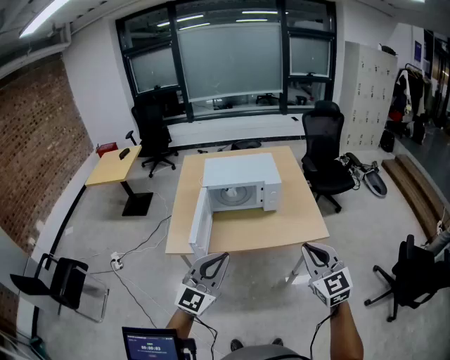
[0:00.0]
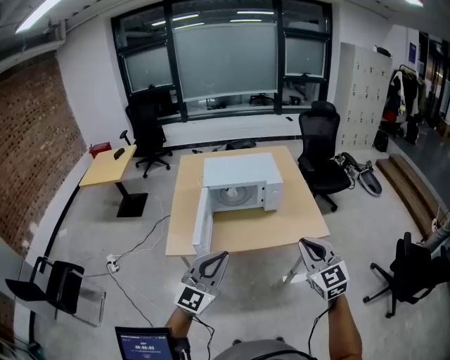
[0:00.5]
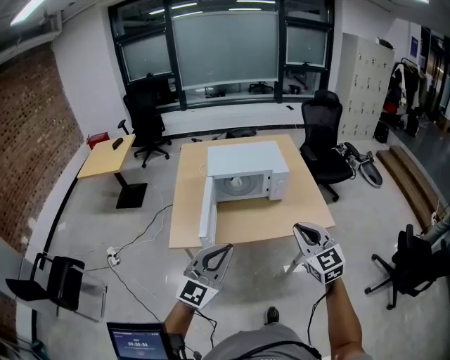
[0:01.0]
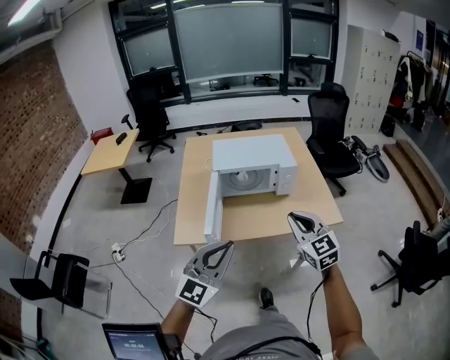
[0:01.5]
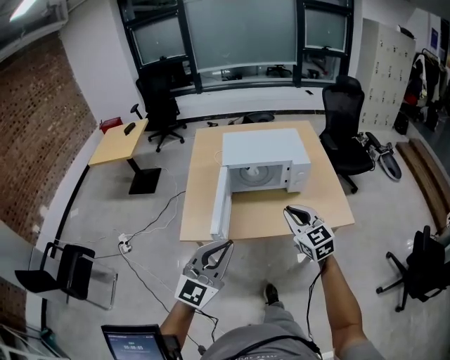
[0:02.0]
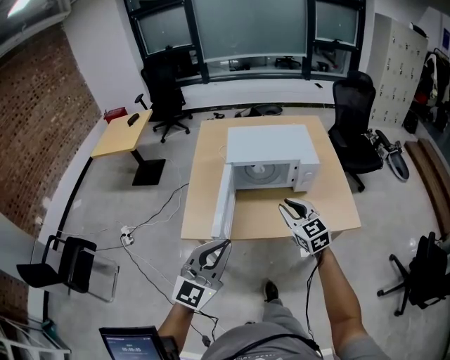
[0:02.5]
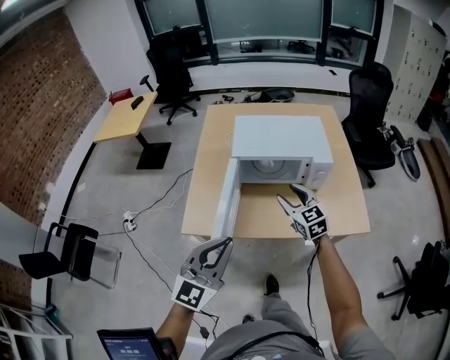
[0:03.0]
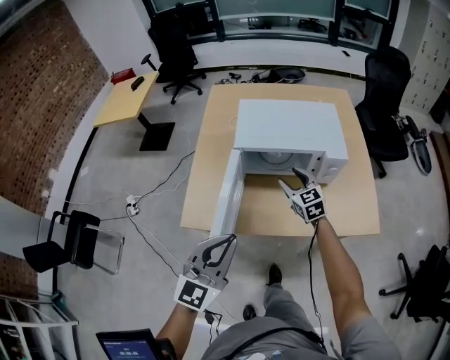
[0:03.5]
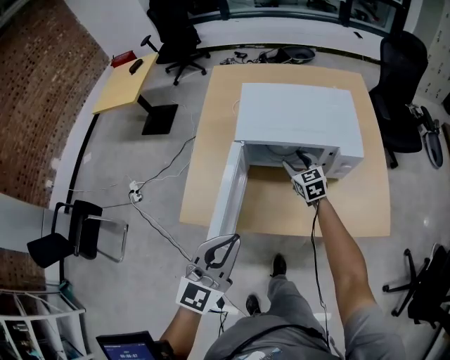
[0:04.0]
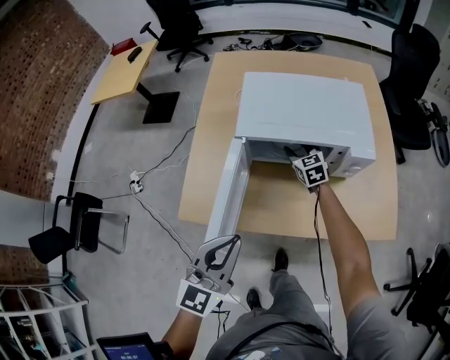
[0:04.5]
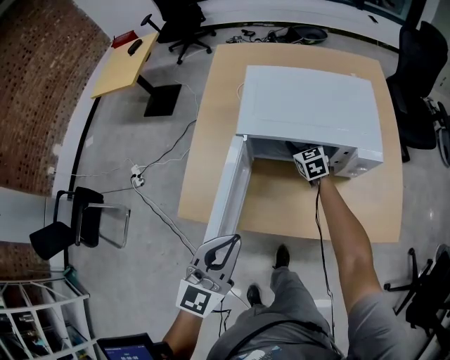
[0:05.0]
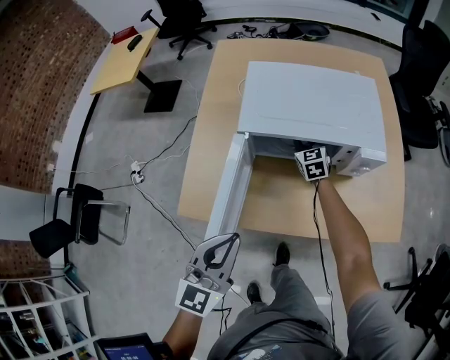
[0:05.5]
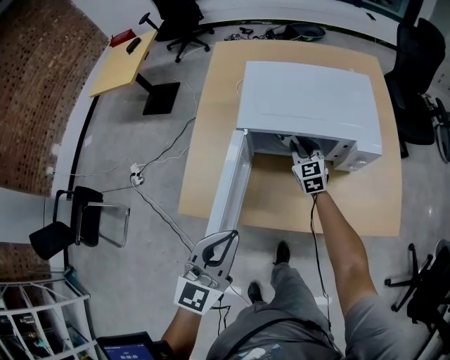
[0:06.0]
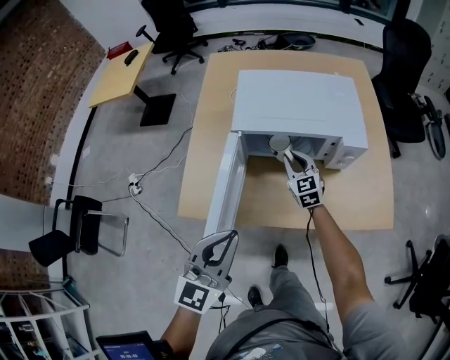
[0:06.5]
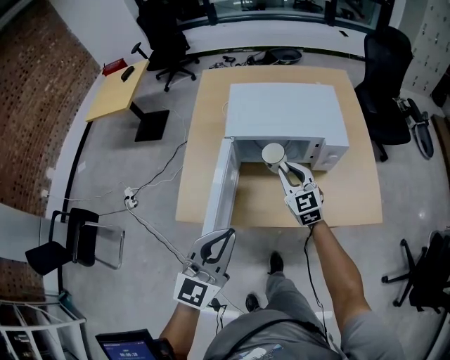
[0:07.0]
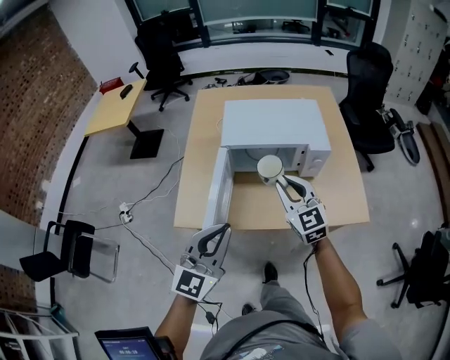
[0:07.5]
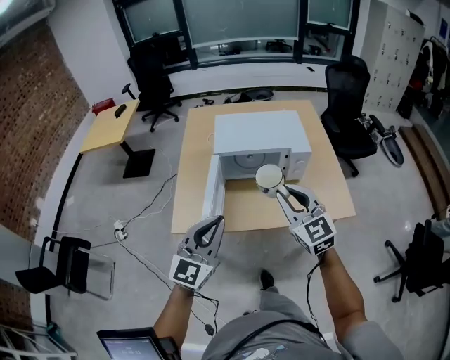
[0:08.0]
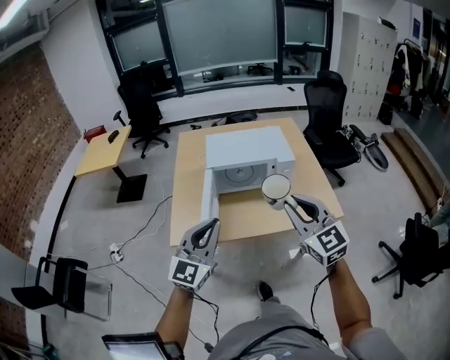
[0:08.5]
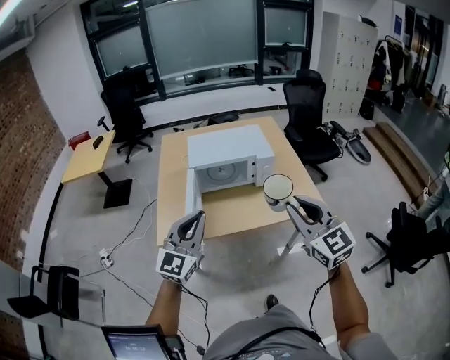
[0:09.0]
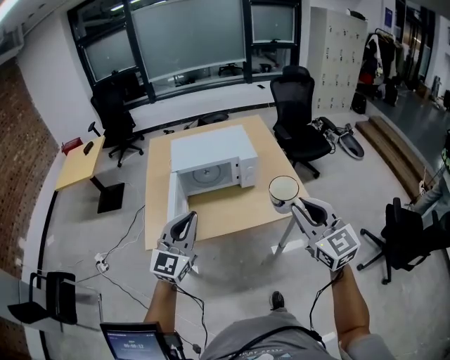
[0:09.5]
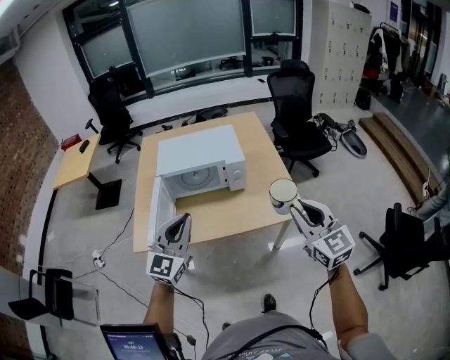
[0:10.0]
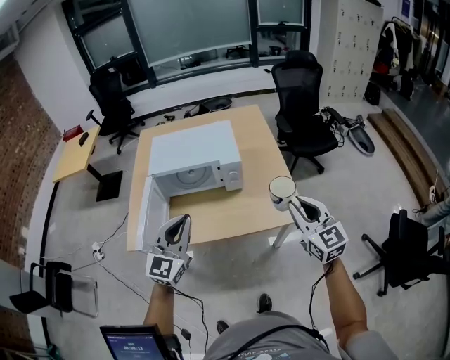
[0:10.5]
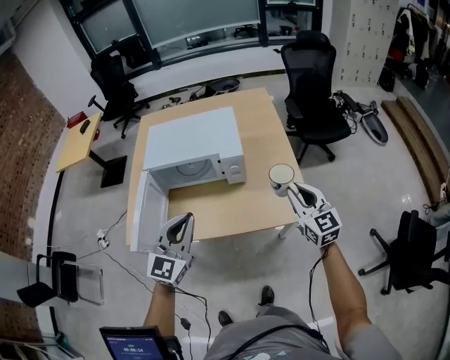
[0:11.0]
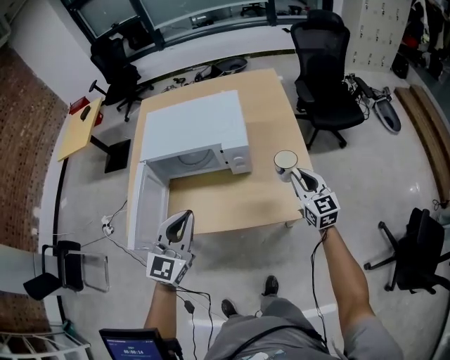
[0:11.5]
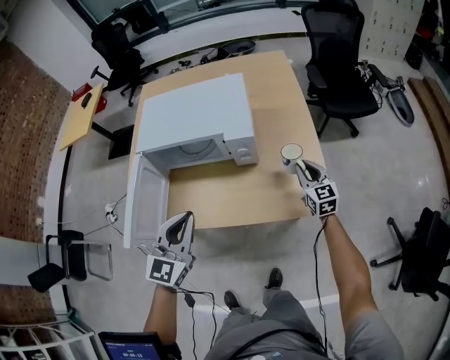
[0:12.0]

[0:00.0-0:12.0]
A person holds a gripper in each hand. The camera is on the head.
0:00.0 to 0:02.0: The right gripper moves to the left, forward and downward, some 25 cm, while the left gripper goes roughly 15 cm to the left and forward.
0:02.0 to 0:04.0: The right gripper is displaced forward and downward by some 50 cm, and opens up; the left gripper moves forward and downward, some 25 cm, and swivels roughly 20 degrees.
0:04.0 to 0:06.0: The left gripper moves some 5 cm, while the right gripper heads forward and downward, covering some 5 cm, and closes its fingers.
0:06.0 to 0:08.0: The right gripper shifts about 50 cm backward and upward. Meanwhile the left gripper moves backward and upward, about 20 cm.
0:08.0 to 0:10.0: The right gripper goes approximately 30 cm to the right, while the left gripper shifts about 15 cm to the right.
0:10.0 to 0:12.0: The right gripper is displaced forward and downward by roughly 50 cm. The left gripper shifts roughly 25 cm forward, downward and to the right.

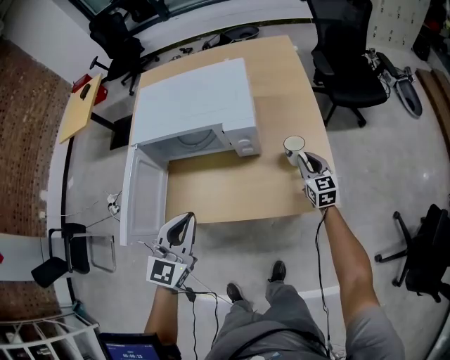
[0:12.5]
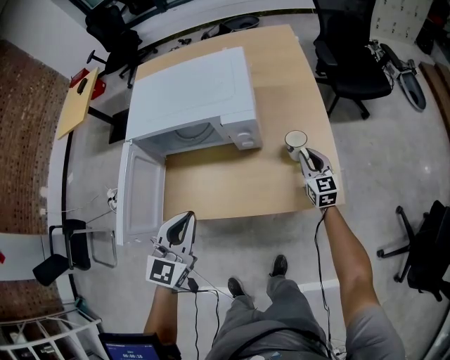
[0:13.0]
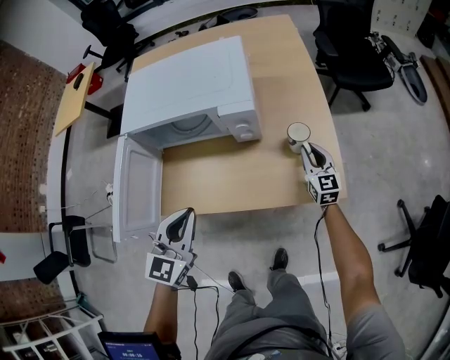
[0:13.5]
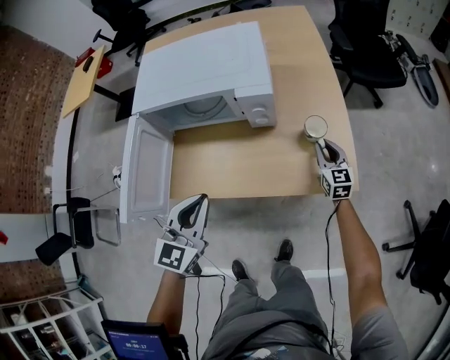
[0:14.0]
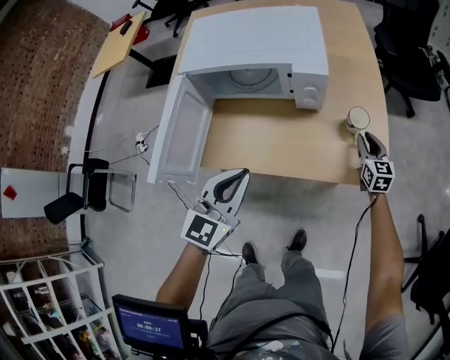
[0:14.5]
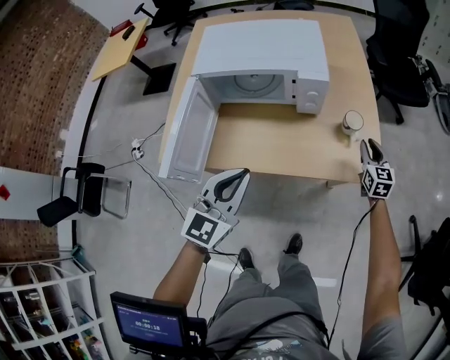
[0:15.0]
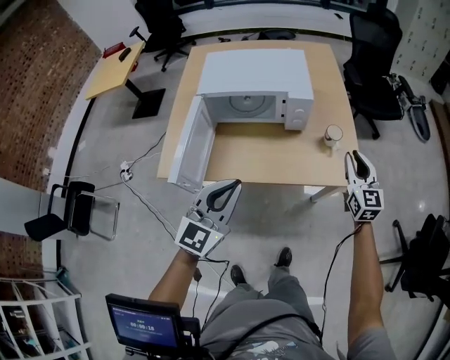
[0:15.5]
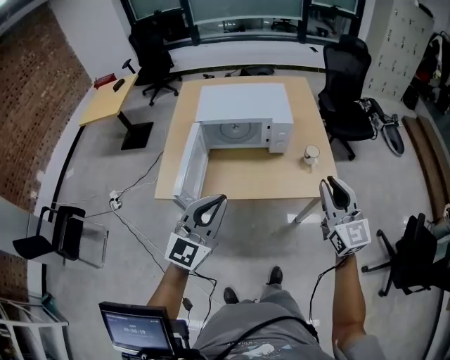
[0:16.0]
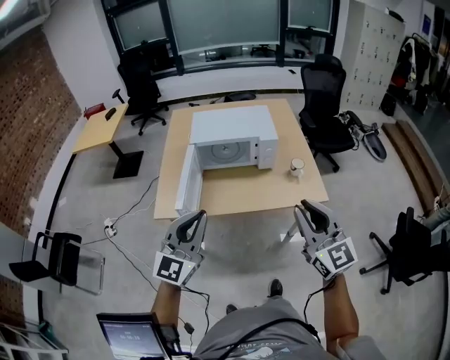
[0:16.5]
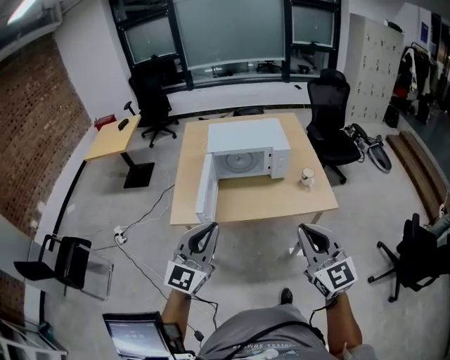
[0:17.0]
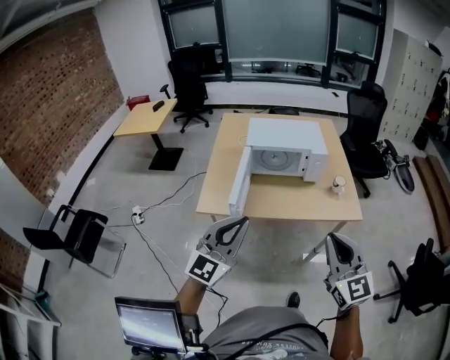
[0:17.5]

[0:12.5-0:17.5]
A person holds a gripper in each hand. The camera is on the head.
0:12.5 to 0:15.0: Both grippers move backward, some 10 cm.
0:15.0 to 0:17.5: The left gripper shifts approximately 40 cm backward, upward and to the left, and changes its angle by approximately 20 degrees. The right gripper shifts approximately 70 cm backward, upward and to the left, and changes its angle by approximately 30 degrees.

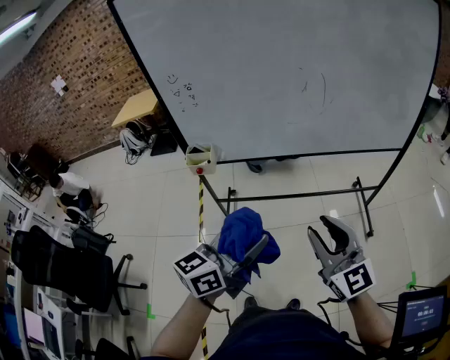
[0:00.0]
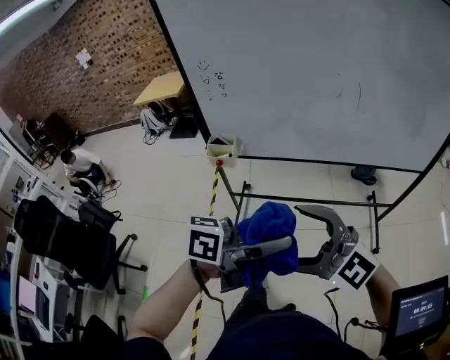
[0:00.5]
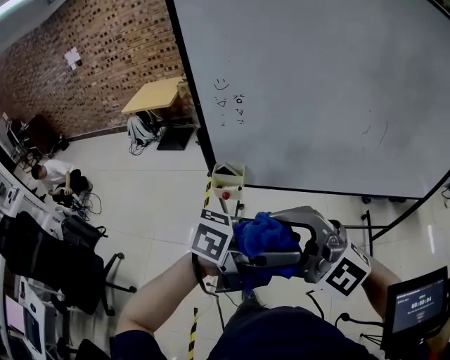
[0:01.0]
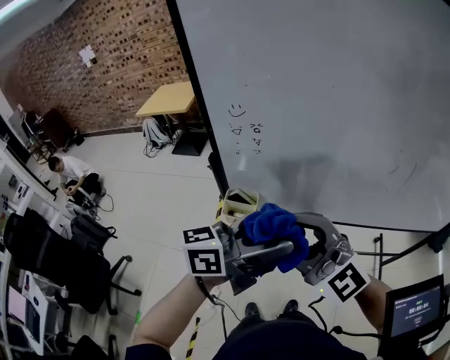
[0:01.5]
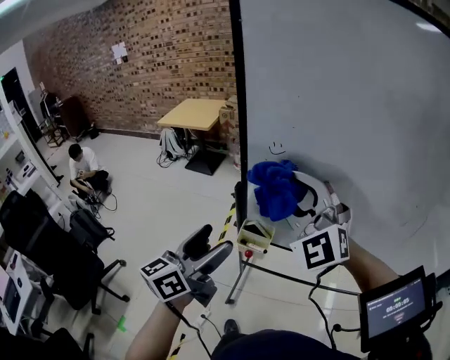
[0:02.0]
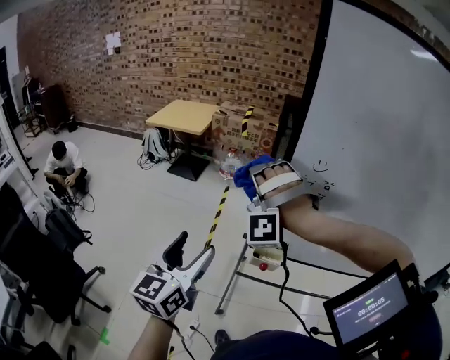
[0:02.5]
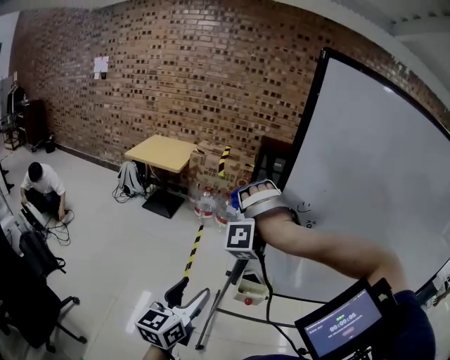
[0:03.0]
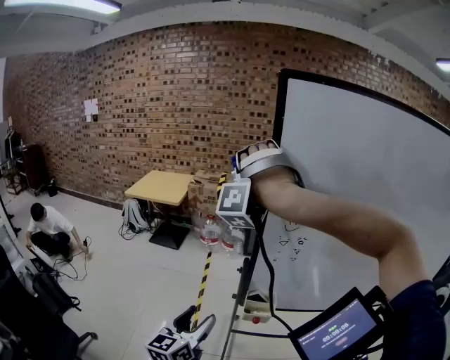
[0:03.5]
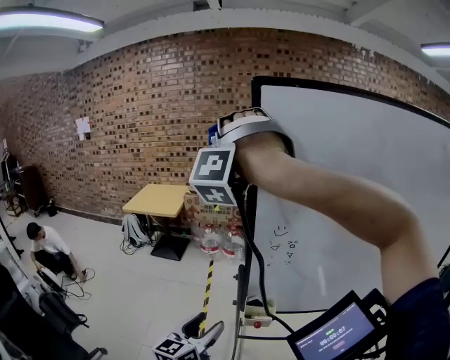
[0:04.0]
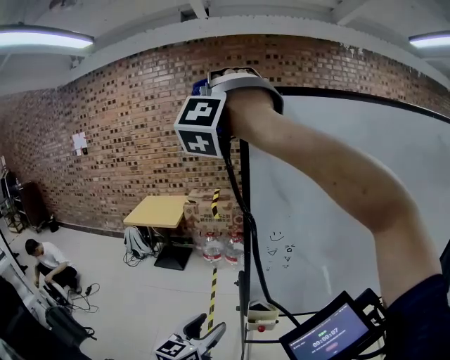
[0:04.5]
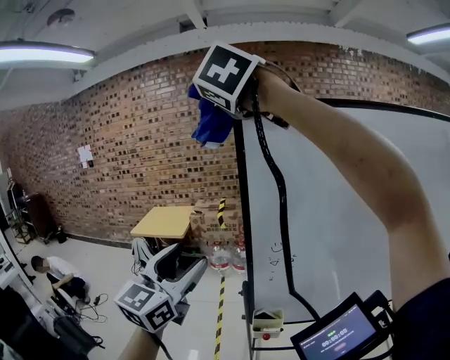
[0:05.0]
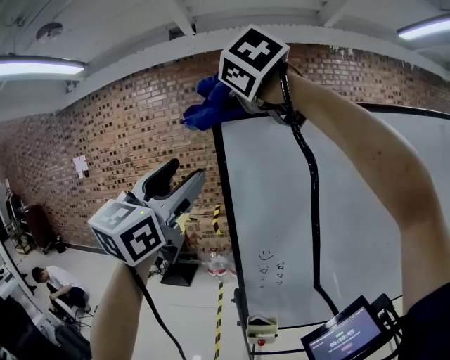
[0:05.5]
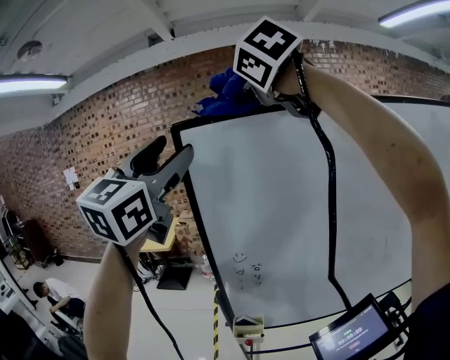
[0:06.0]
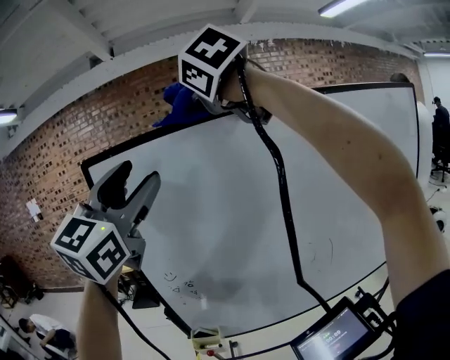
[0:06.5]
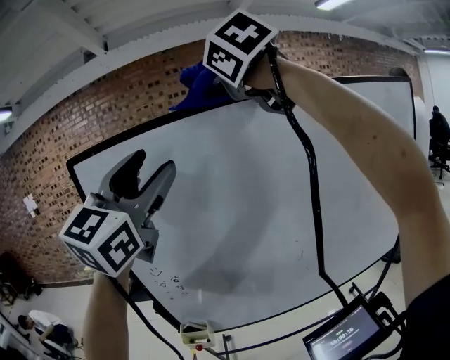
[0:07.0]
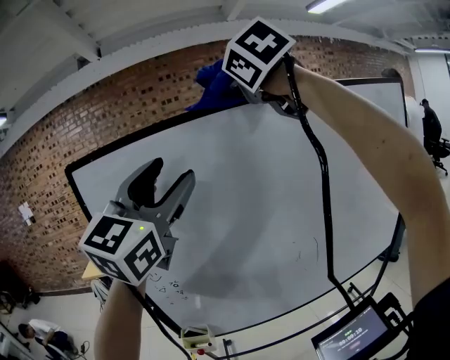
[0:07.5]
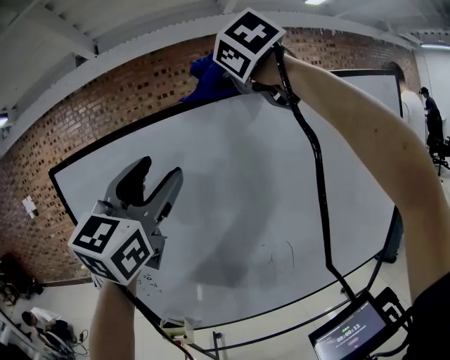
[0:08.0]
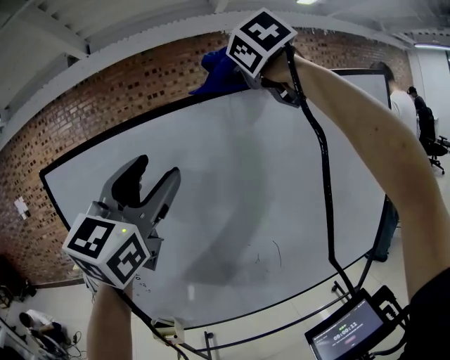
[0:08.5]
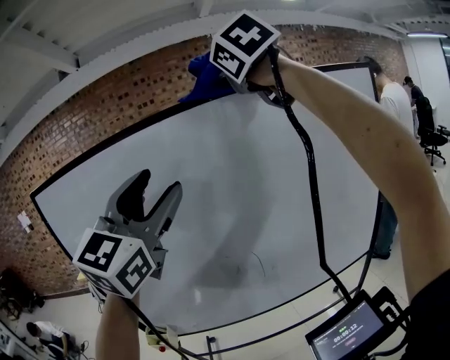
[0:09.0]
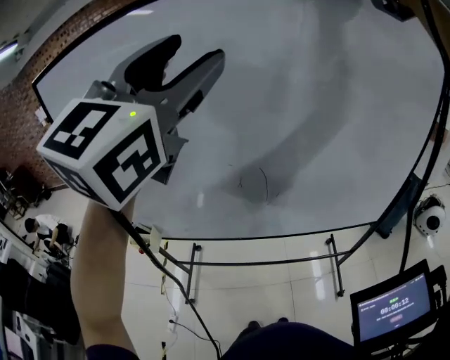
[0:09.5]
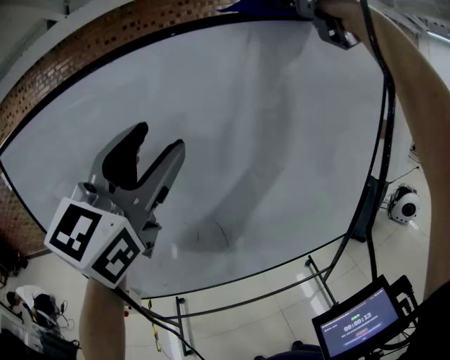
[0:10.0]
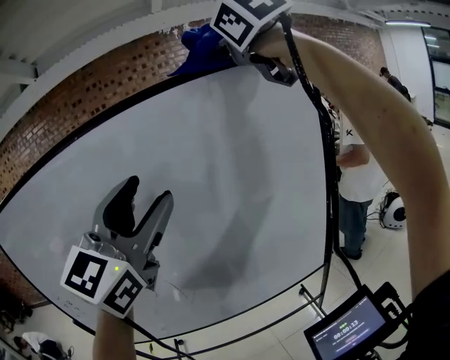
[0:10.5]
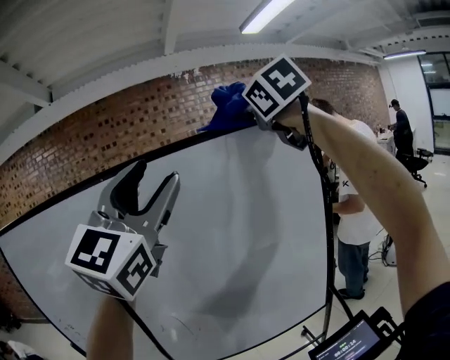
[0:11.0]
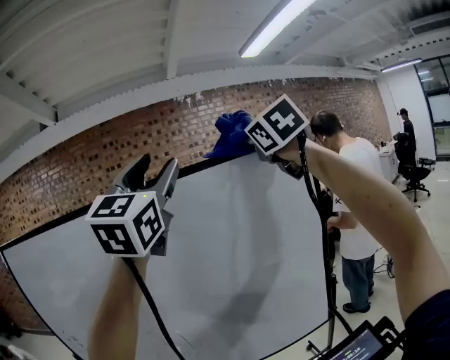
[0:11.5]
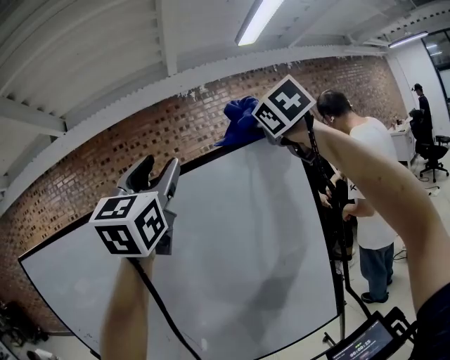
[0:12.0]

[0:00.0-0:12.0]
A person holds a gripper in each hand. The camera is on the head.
0:00.0 to 0:02.0: The right gripper changes place by some 50 cm, twists some 50 degrees counterclockwise, seen from behind, and opens and closes again, while the left gripper changes place by about 35 cm, turns by roughly 30 degrees, and opens up.
0:02.0 to 0:04.0: The left gripper travels downward by approximately 10 cm; the right gripper goes approximately 25 cm upward, and rotates some 80 degrees.
0:04.0 to 0:06.0: The right gripper goes about 30 cm to the right and upward, and twists some 70 degrees clockwise, seen from behind; the left gripper moves upward, about 50 cm, and rotates around the line of its fingers by about 40 degrees, clockwise from behind.
0:06.0 to 0:08.0: The two grippers go some 30 cm to the right.
0:08.0 to 0:10.0: The left gripper goes some 15 cm to the right, forward and downward; the right gripper heads to the right, covering some 20 cm.
0:10.0 to 0:12.0: The left gripper goes roughly 30 cm to the right and upward. The right gripper heads to the right, covering approximately 30 cm.
